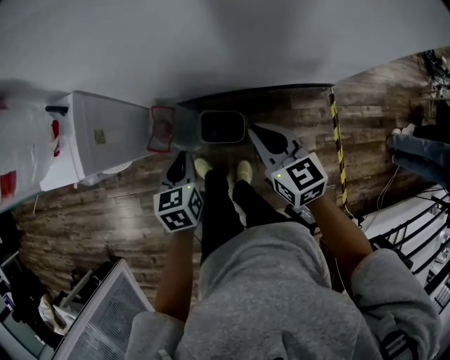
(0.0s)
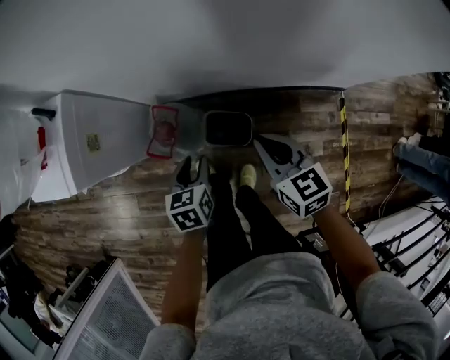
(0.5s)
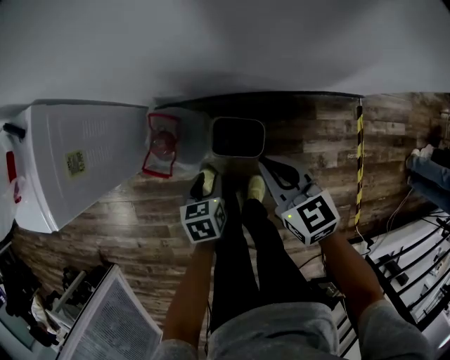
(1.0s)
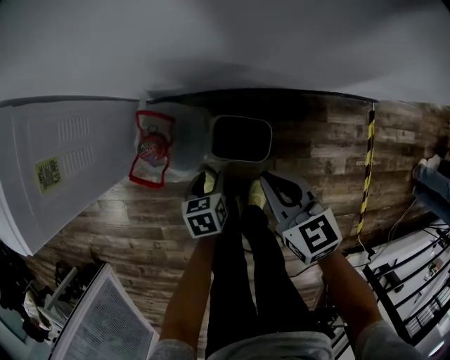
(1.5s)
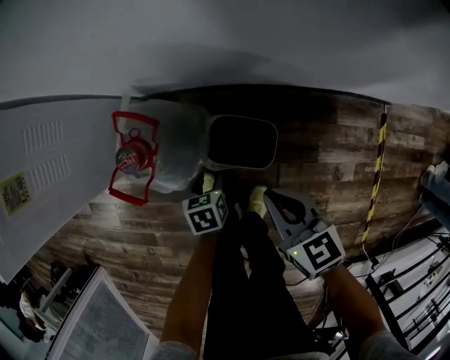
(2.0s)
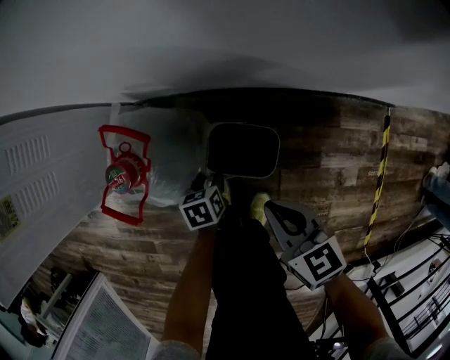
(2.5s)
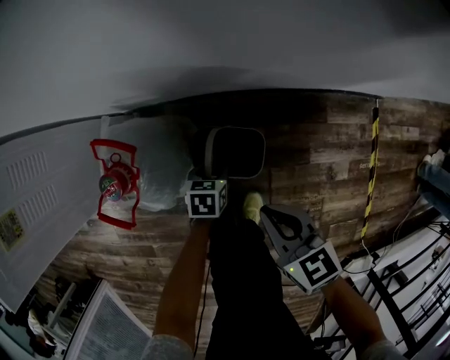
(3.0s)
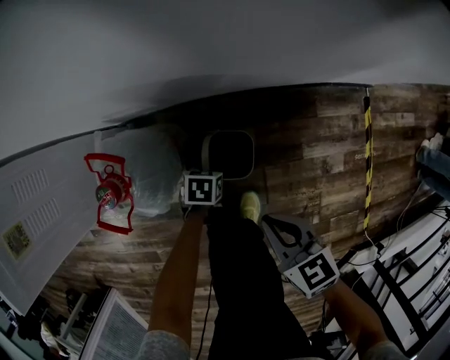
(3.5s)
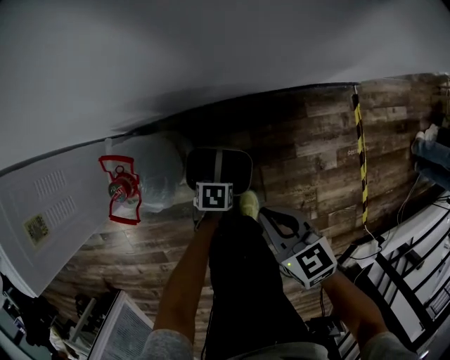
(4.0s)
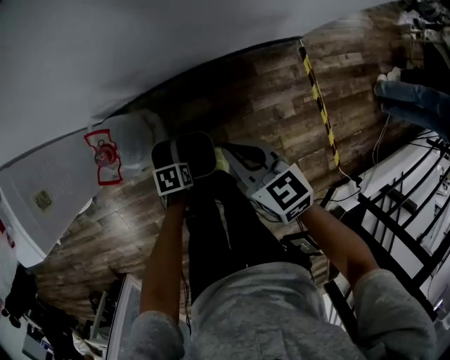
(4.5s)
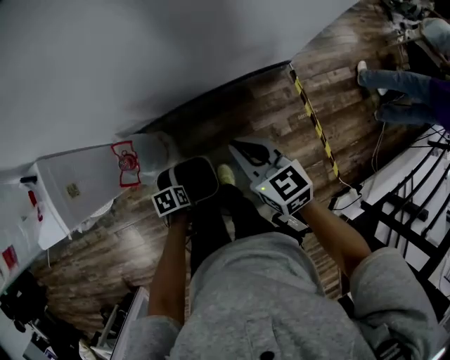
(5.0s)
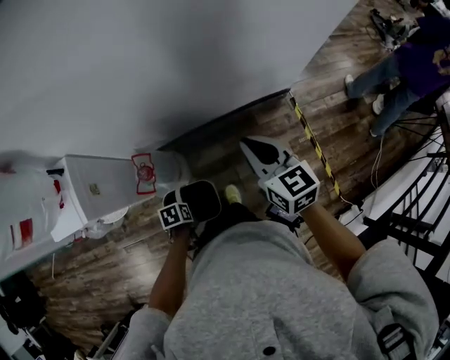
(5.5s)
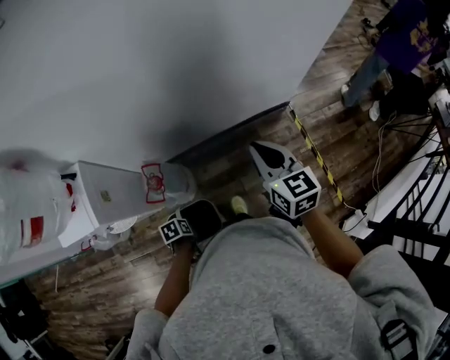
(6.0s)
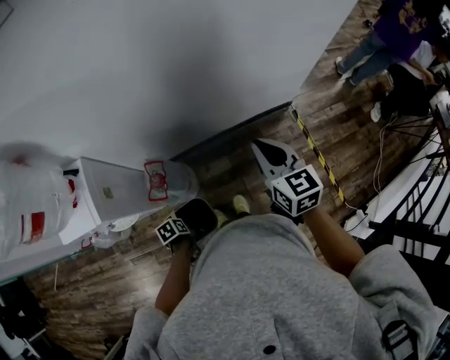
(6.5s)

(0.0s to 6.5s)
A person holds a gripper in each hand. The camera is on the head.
0.0s - 2.0s: The two grippers go approximately 40 cm downward. The left gripper turns by approximately 30 degrees, and opens its fingers.
2.0s - 4.5s: The grippers both shift upward by roughly 20 cm. The left gripper turns by approximately 30 degrees, and closes up.
4.5s - 6.5s: The right gripper is displaced upward by some 25 cm, and turns by some 30 degrees. The left gripper changes place by roughly 25 cm, and changes its angle by about 20 degrees.

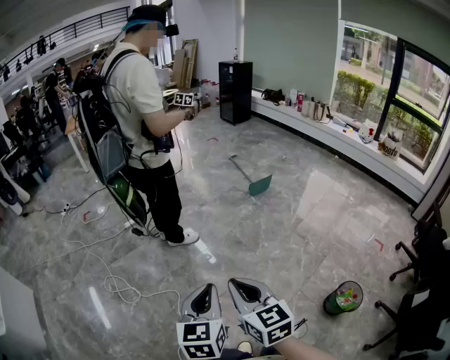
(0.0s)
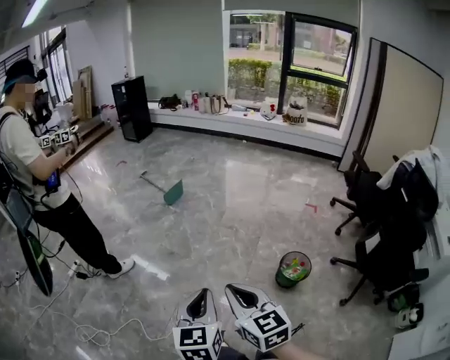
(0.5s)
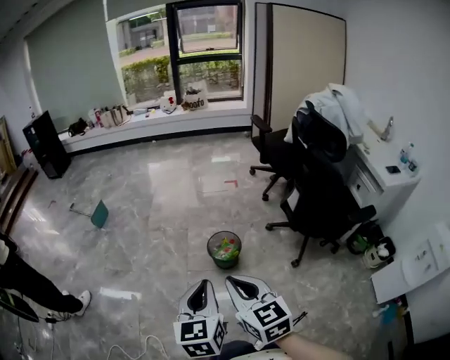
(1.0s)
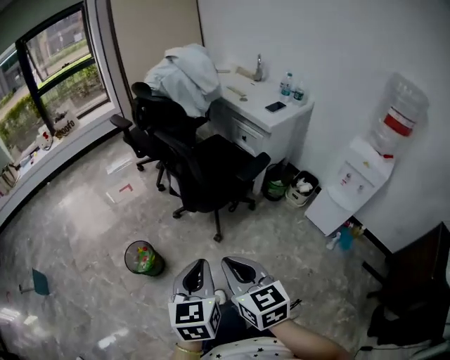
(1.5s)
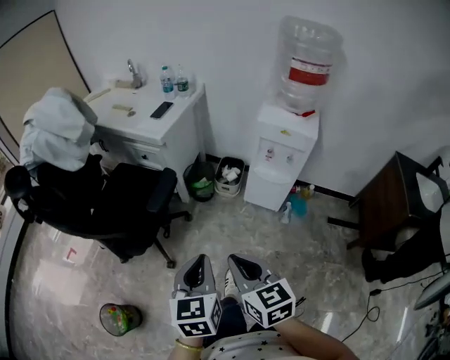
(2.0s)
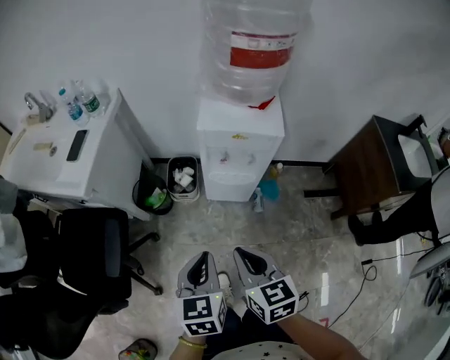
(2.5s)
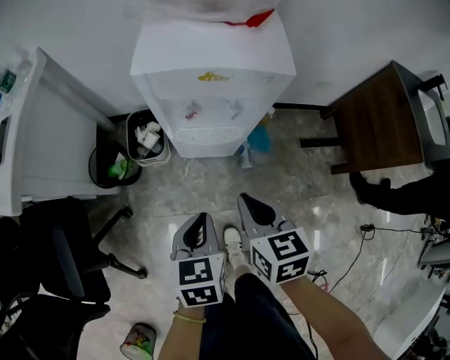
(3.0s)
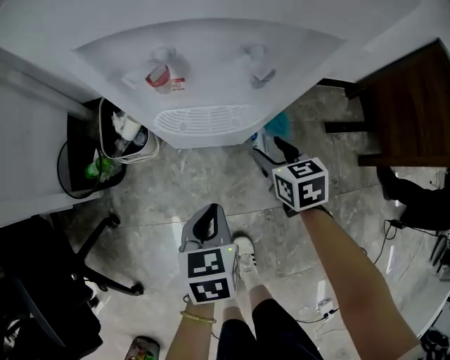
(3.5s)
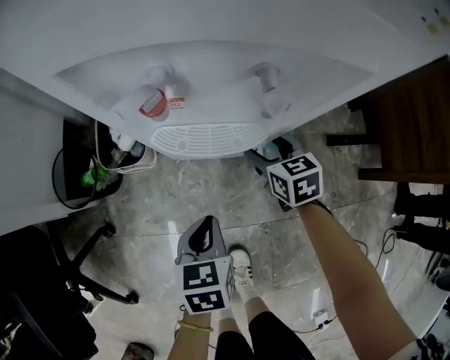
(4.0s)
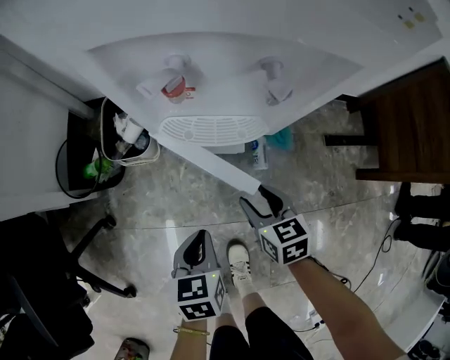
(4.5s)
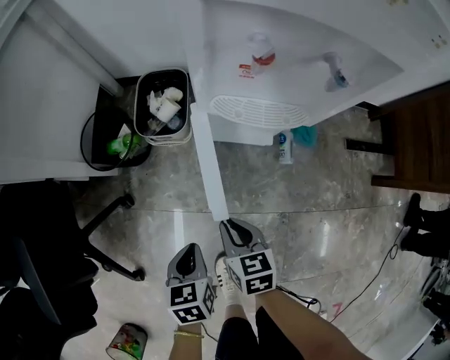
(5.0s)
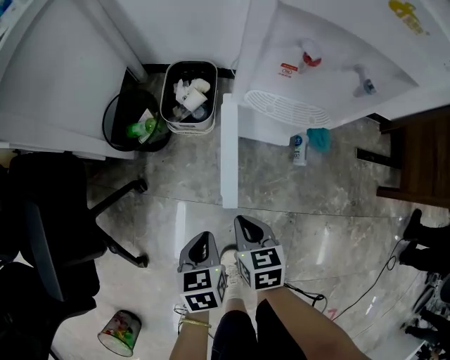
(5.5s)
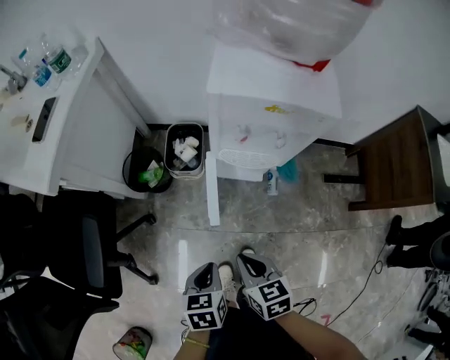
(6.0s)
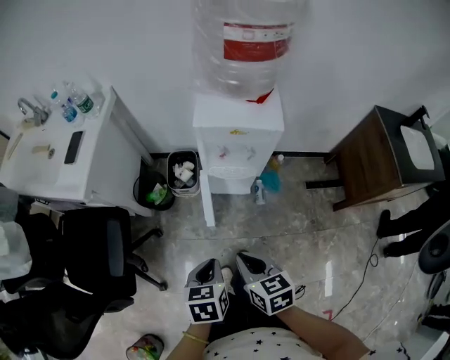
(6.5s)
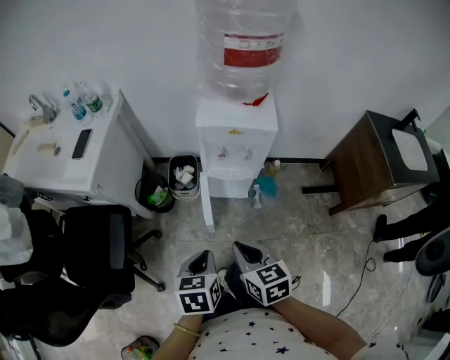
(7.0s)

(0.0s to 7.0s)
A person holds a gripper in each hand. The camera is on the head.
0.0s - 2.0s: Both grippers are carried about 1 m. The left gripper swivels some 110 degrees. Meanwhile the right gripper swivels about 120 degrees.
2.0s - 3.5s: The two grippers travel together, about 50 cm. The right gripper rotates roughly 40 degrees, and opens; the left gripper is displaced downward by some 50 cm, and turns by about 40 degrees.
3.5s - 5.0s: Both grippers travel together to the left and backward, roughly 25 cm. The right gripper closes up.
5.0s - 7.0s: The two grippers go some 40 cm upward.

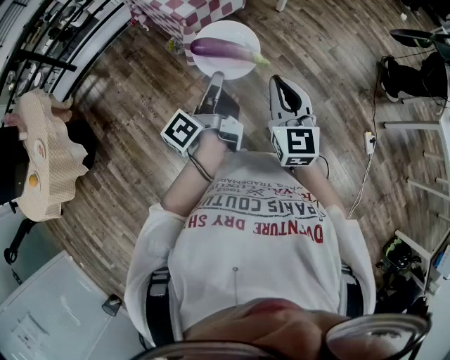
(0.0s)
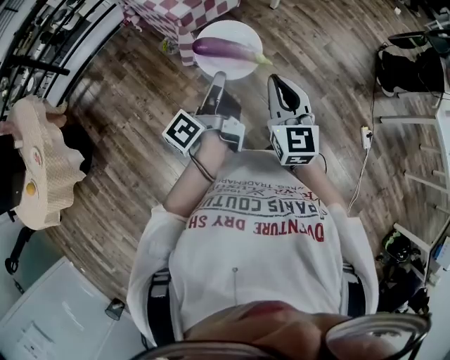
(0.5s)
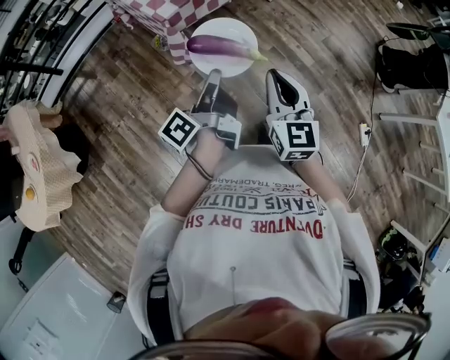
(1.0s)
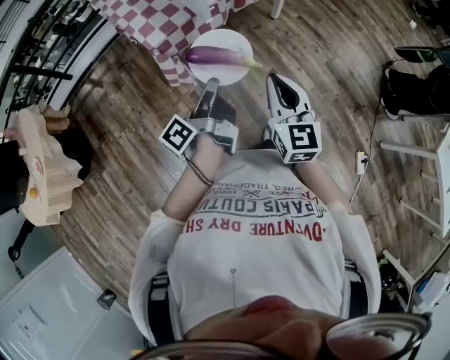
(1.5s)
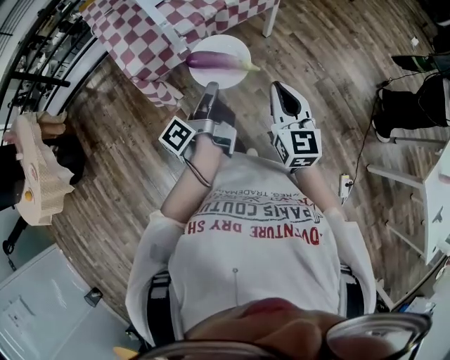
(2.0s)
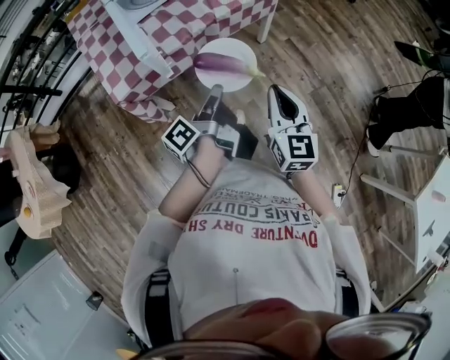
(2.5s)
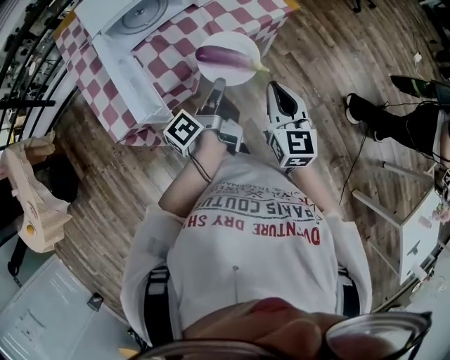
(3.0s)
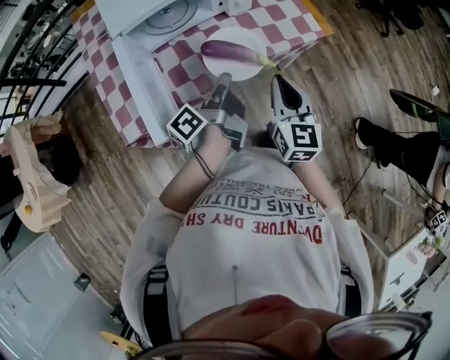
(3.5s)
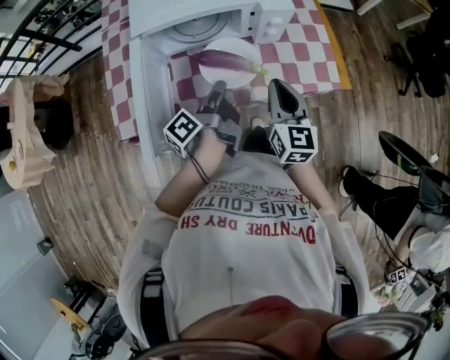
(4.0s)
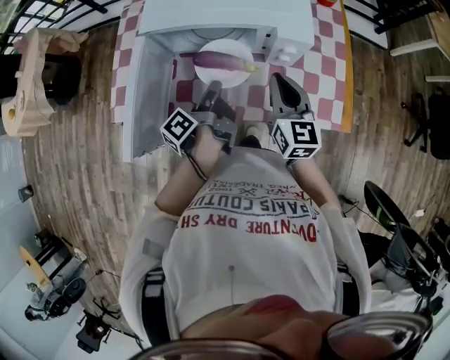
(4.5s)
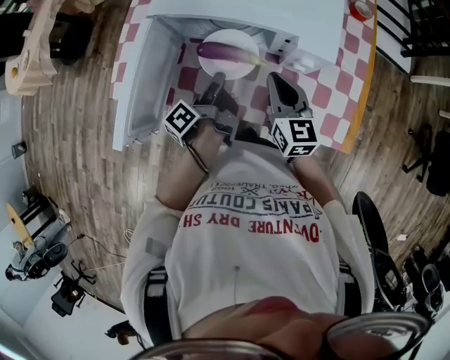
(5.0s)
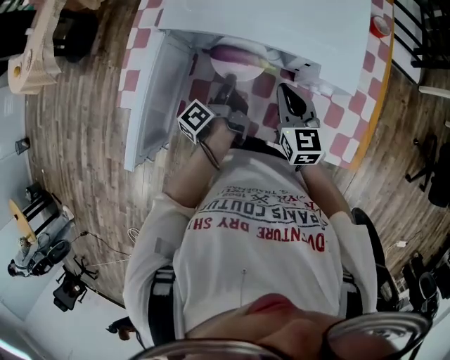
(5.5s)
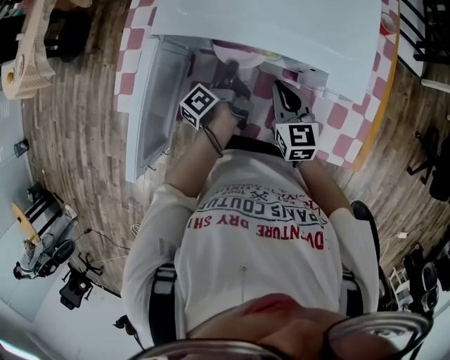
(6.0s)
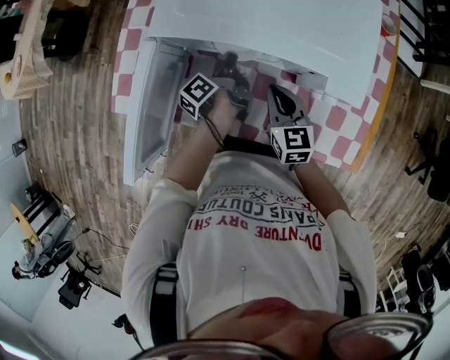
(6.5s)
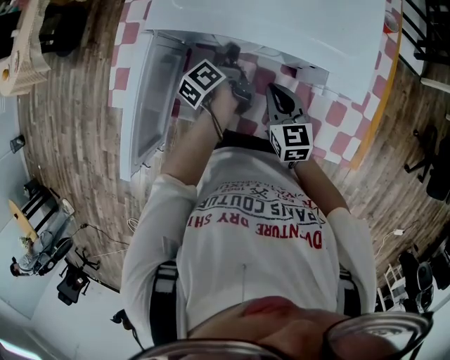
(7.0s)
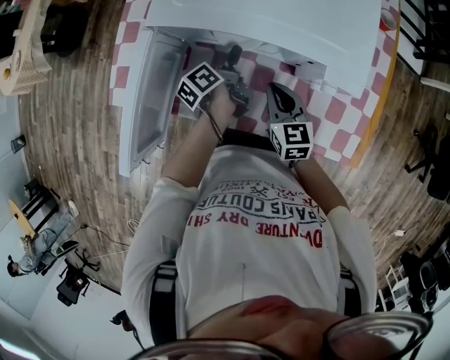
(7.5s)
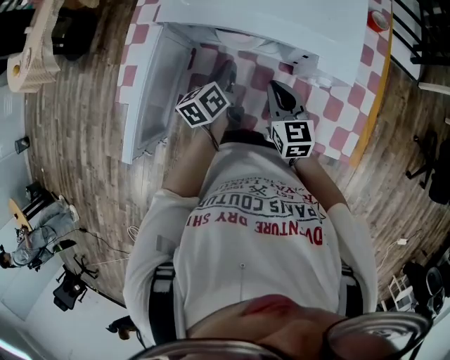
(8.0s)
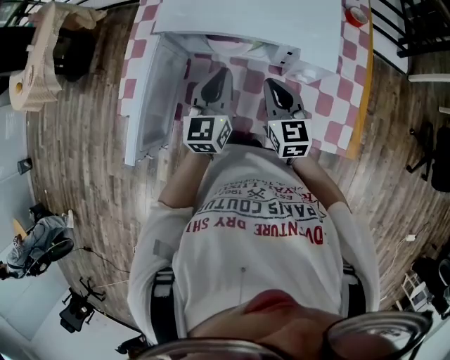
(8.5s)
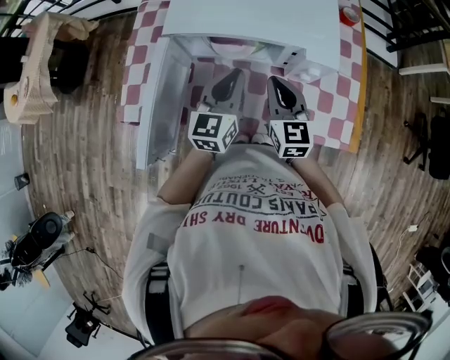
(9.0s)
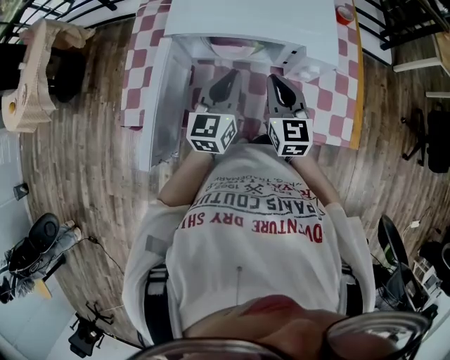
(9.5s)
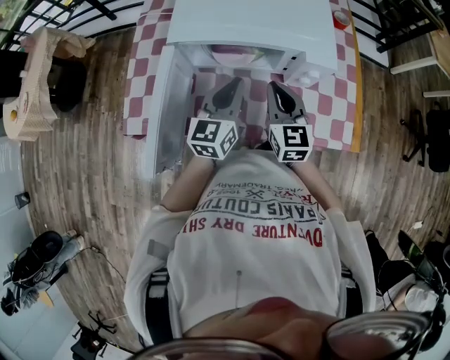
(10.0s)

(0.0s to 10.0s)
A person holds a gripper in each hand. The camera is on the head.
0.0s - 2.0s: The right gripper ends up roughly 40 cm from where it was.
2.0s - 4.0s: The right gripper changes place by some 60 cm, and changes its angle by some 20 degrees.
4.0s - 6.0s: The right gripper ends up some 25 cm from where it was, and changes its angle by roughly 40 degrees.
8.0s - 10.0s: The right gripper goes roughly 10 cm upward.

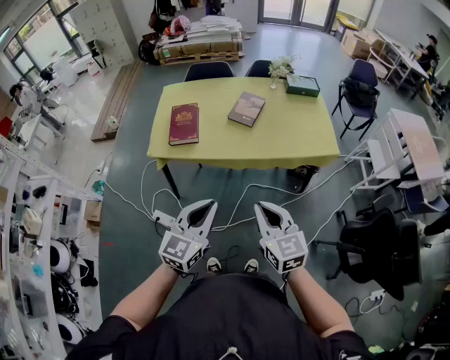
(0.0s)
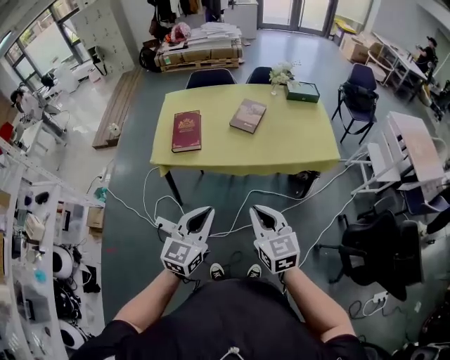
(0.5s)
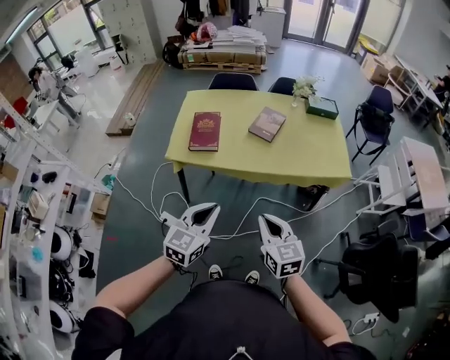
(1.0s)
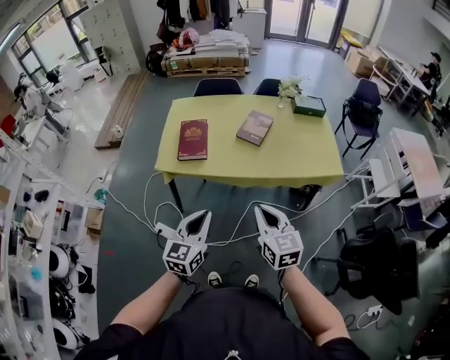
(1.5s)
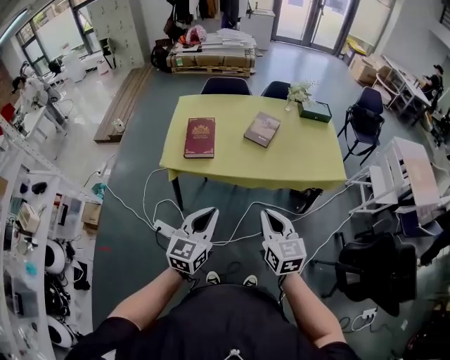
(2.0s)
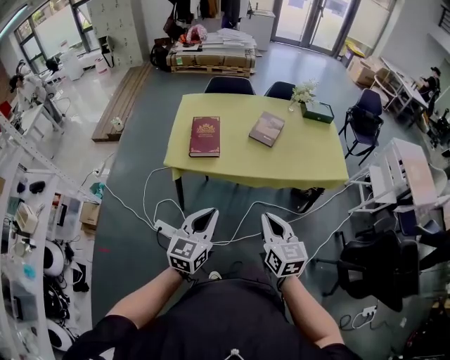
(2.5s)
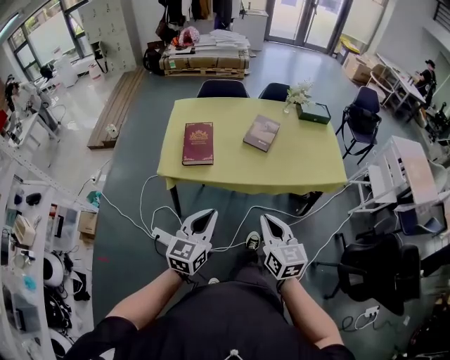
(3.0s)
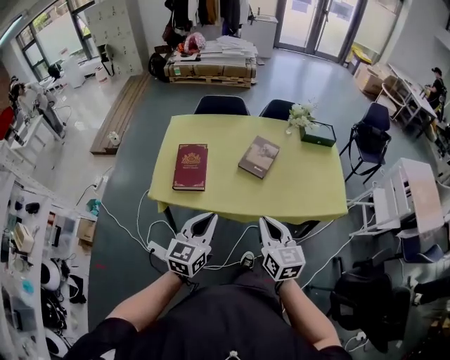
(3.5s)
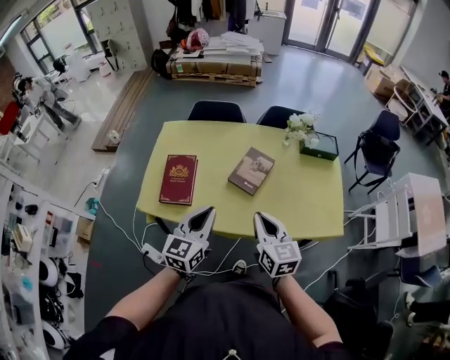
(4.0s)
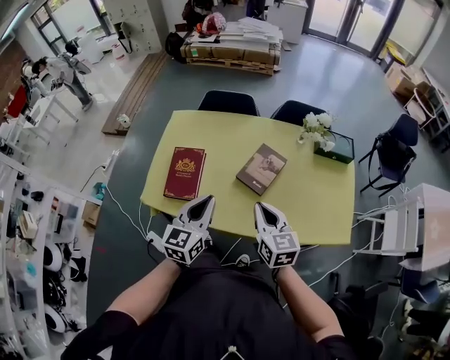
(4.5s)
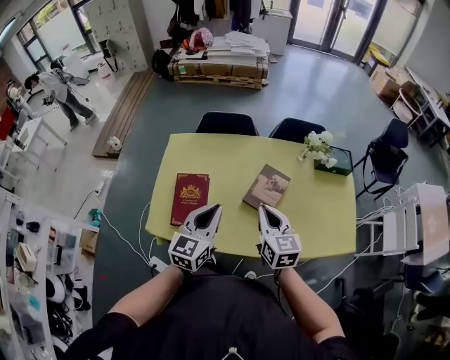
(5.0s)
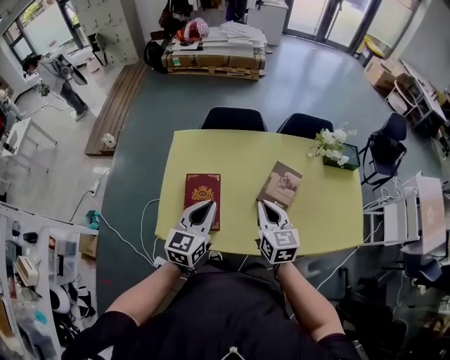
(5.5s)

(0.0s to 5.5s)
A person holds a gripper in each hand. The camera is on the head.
0.0s - 2.0s: Both grippers move to the left, roughly 10 cm.
2.0s - 3.5s: The grippers both shift forward by roughly 20 cm.
3.5s - 5.5s: The two grippers go roughly 30 cm forward.
